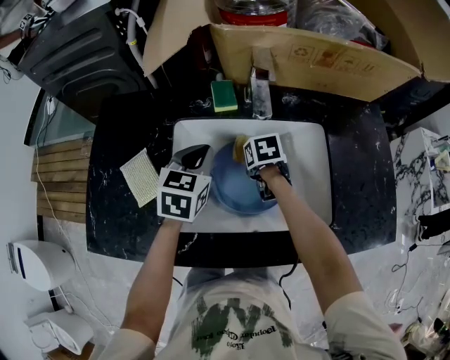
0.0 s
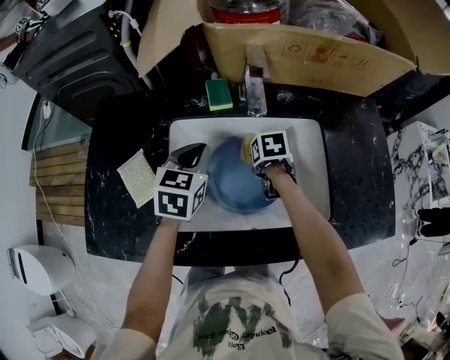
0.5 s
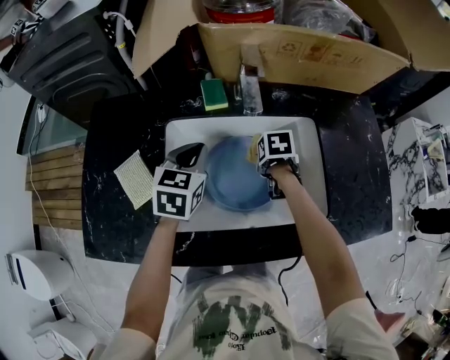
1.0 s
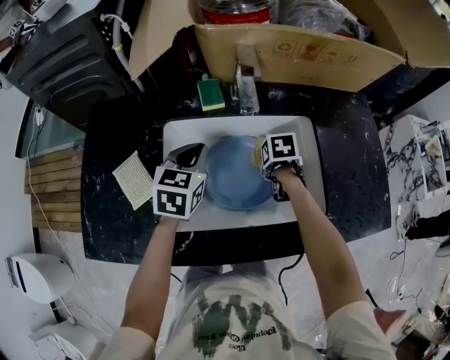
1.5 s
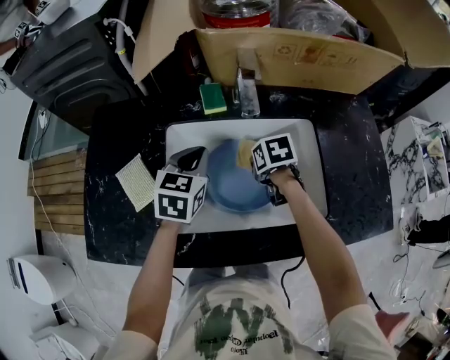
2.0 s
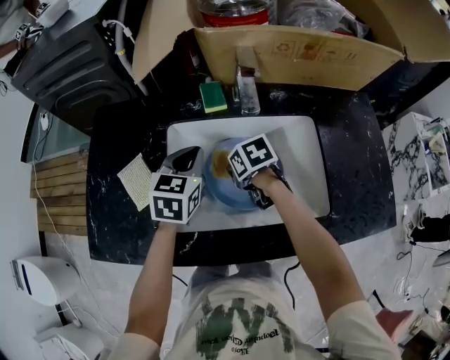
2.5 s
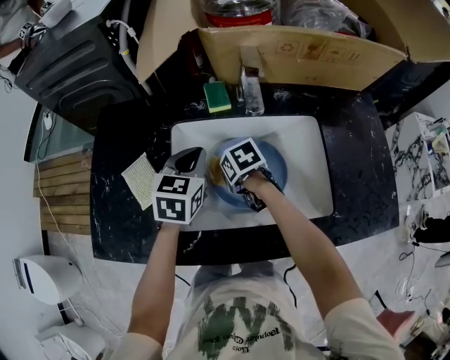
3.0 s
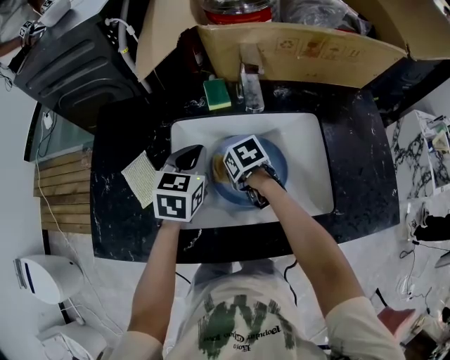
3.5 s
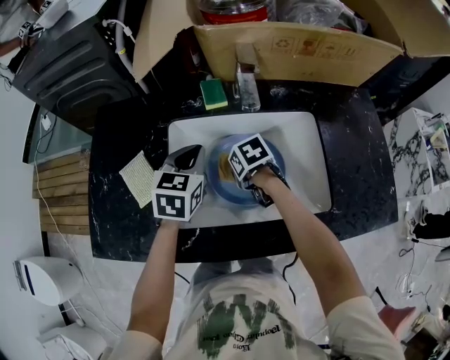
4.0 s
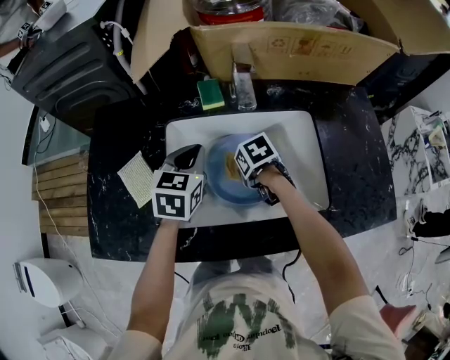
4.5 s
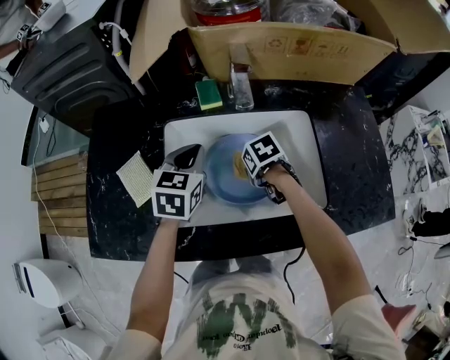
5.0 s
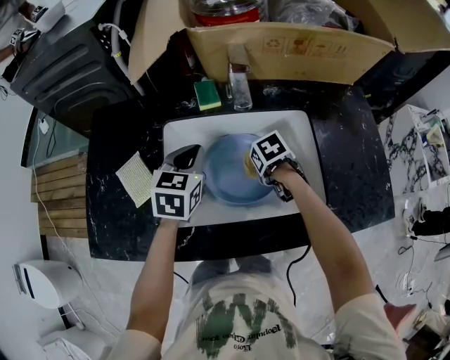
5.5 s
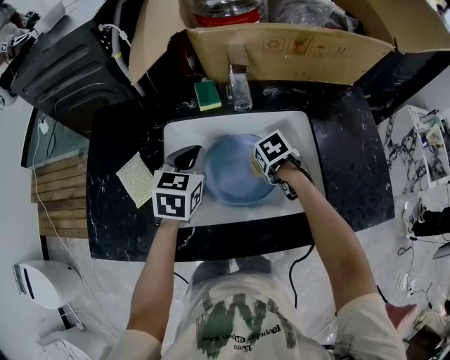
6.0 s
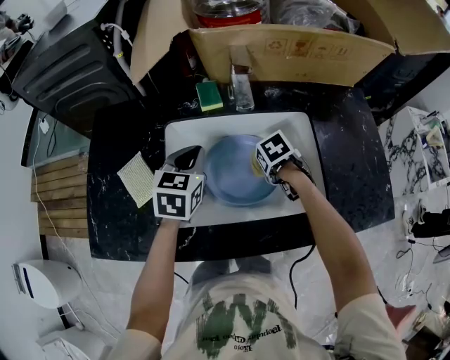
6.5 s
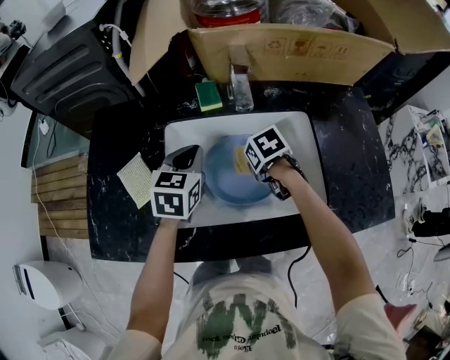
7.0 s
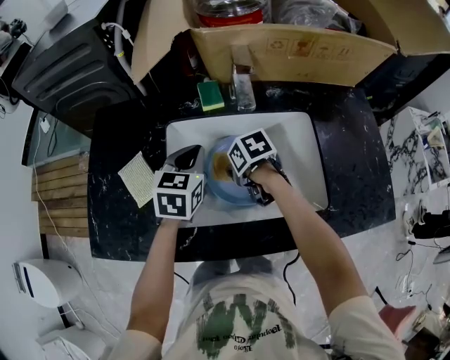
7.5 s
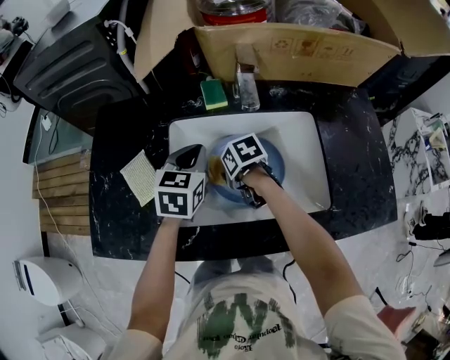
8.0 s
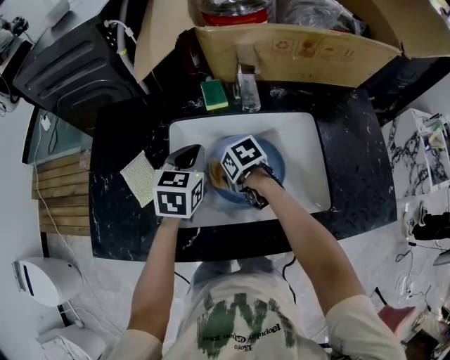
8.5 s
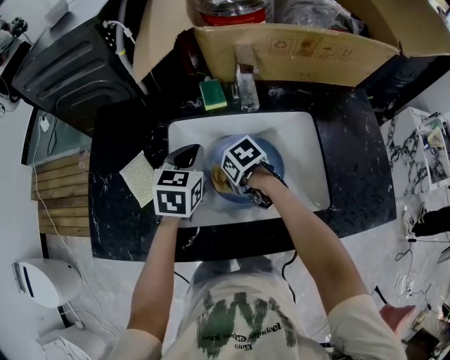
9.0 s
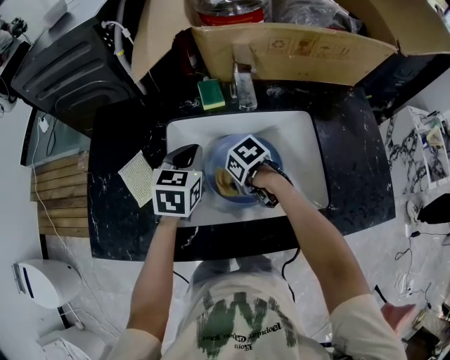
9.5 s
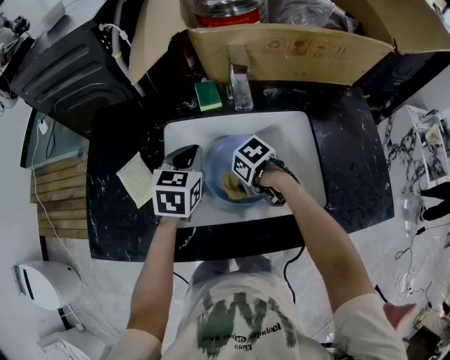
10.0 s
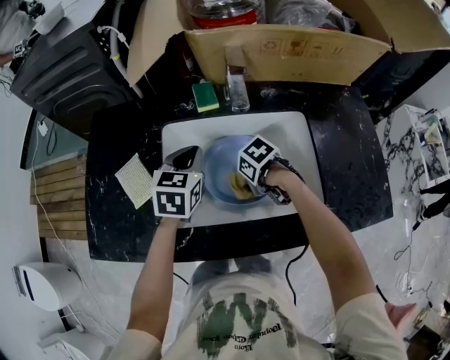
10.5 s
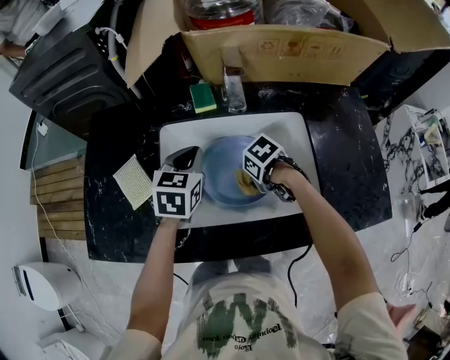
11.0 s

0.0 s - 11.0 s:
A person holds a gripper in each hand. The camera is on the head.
2.0 s - 3.5 s: The right gripper goes about 10 cm to the left.
3.5 s - 5.5 s: The right gripper moves some 10 cm.
5.5 s - 7.5 s: The right gripper shifts by roughly 10 cm.
7.5 s - 9.0 s: There are only small adjustments of the grippers.
9.0 s - 11.0 s: The right gripper ends up roughly 10 cm from where it was.

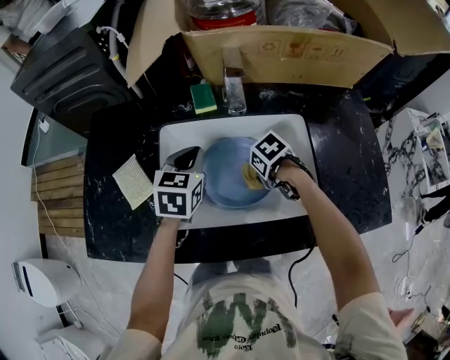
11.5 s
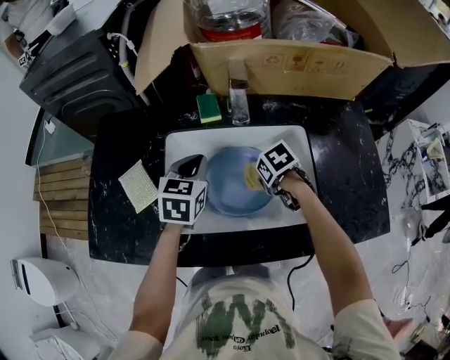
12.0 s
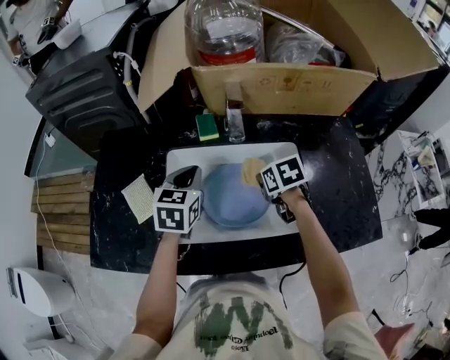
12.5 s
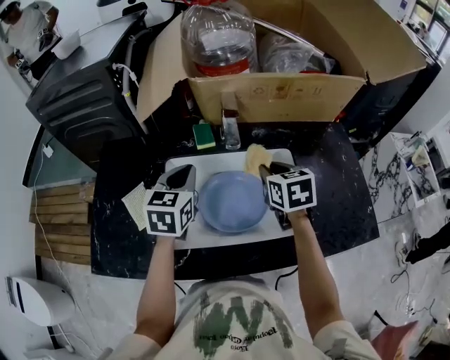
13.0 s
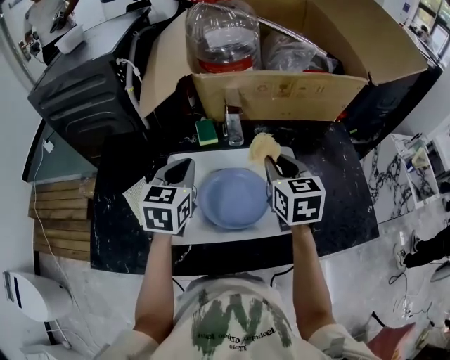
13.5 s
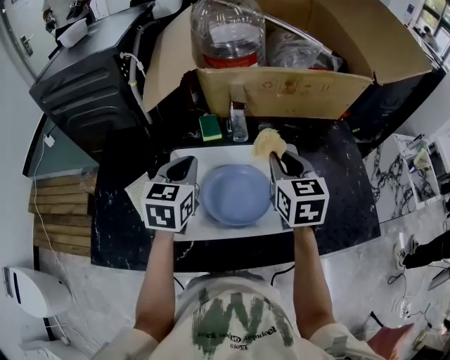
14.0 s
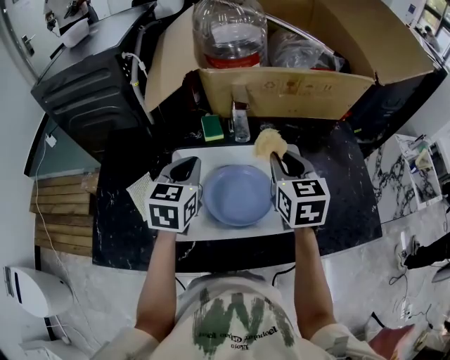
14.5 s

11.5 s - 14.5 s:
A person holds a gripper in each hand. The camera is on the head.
11.5 s - 13.0 s: The right gripper travels upward by approximately 20 cm, and points its fingers about 40 degrees further upward. The left gripper heads upward, covering roughly 10 cm.
13.0 s - 14.5 s: The right gripper travels upward by about 5 cm.

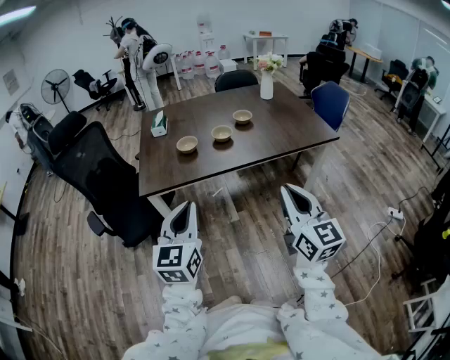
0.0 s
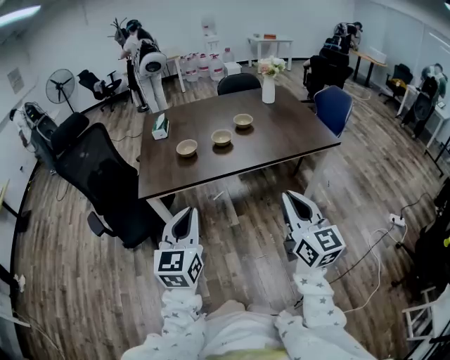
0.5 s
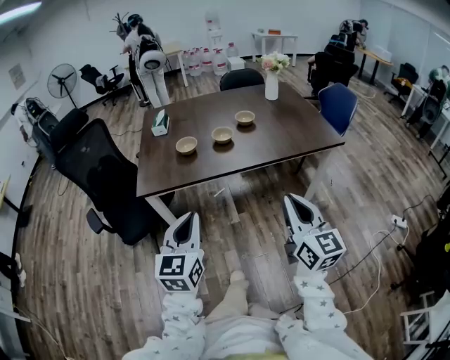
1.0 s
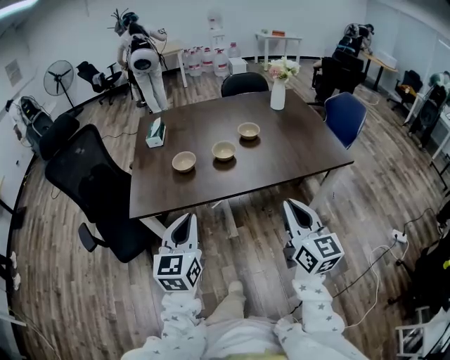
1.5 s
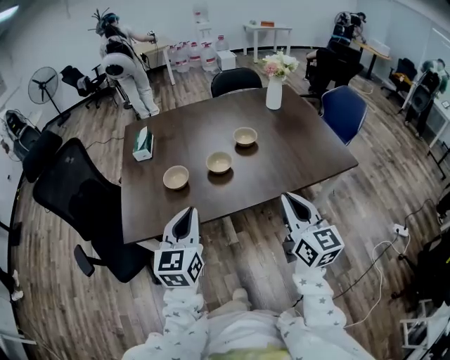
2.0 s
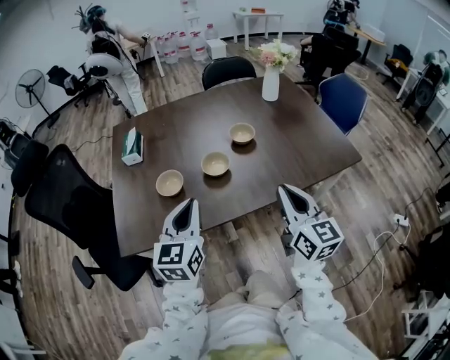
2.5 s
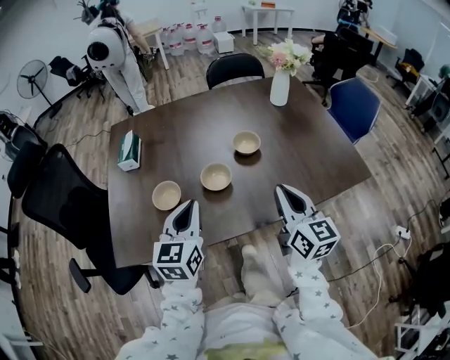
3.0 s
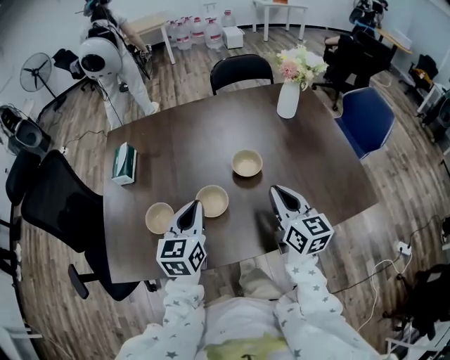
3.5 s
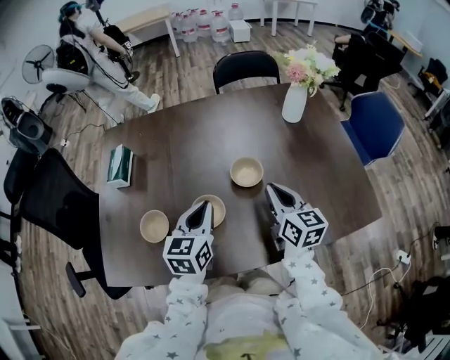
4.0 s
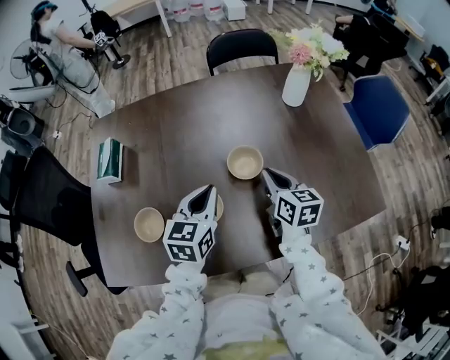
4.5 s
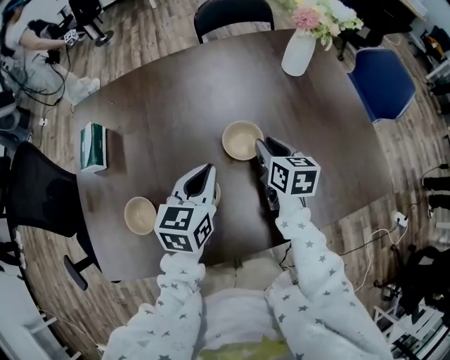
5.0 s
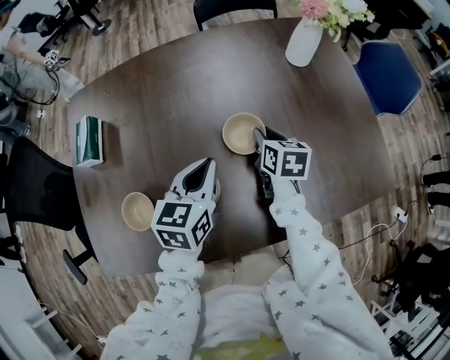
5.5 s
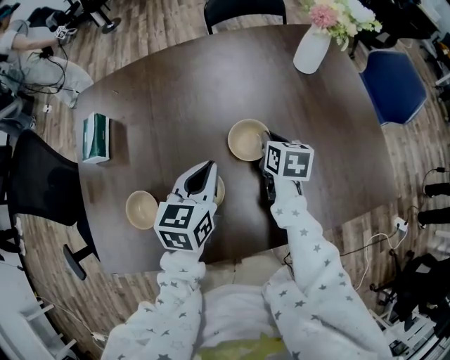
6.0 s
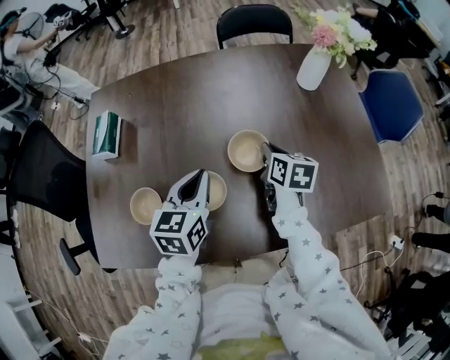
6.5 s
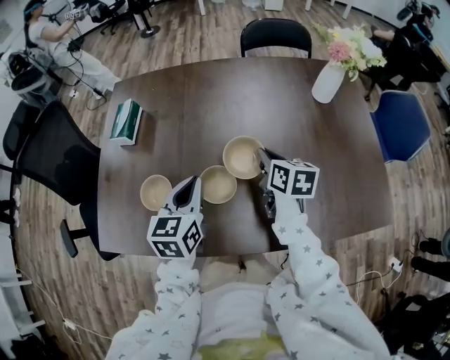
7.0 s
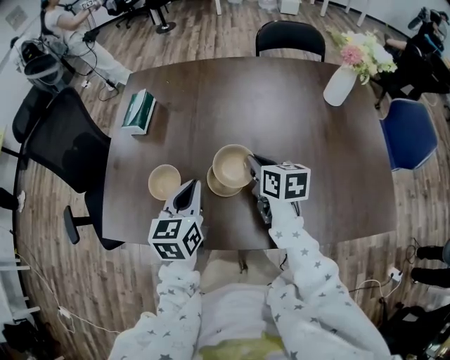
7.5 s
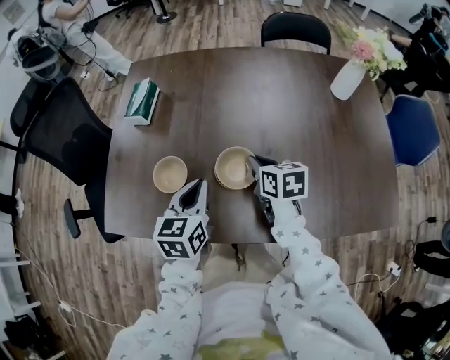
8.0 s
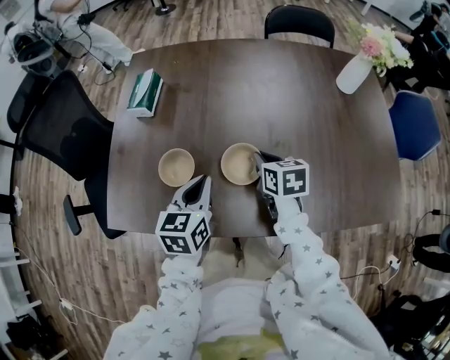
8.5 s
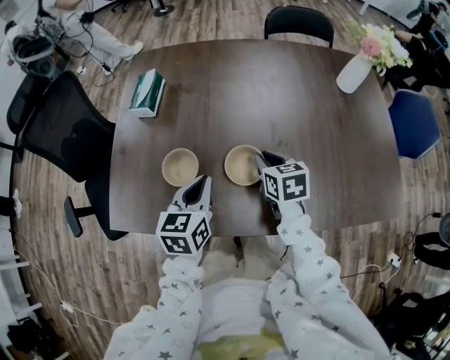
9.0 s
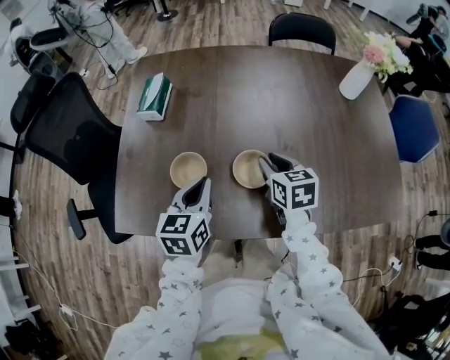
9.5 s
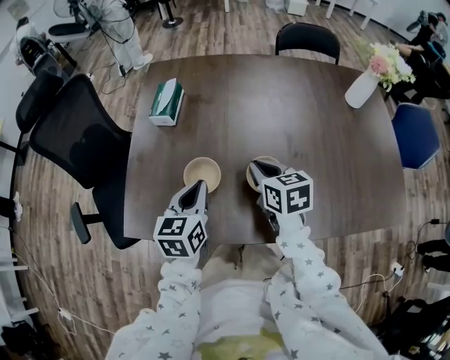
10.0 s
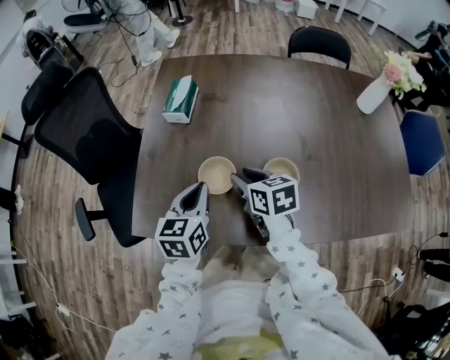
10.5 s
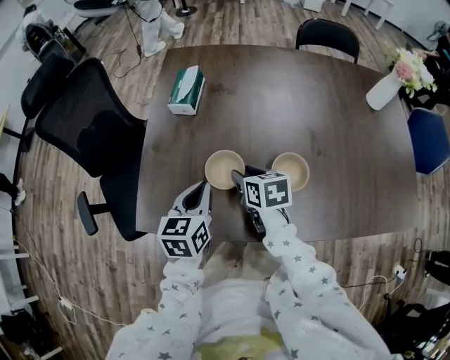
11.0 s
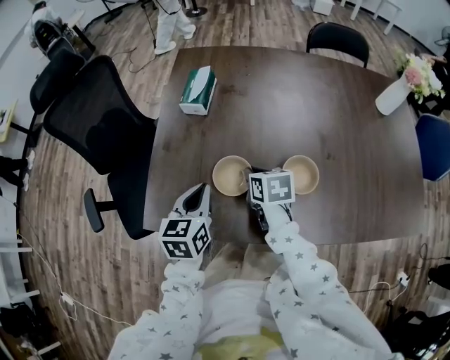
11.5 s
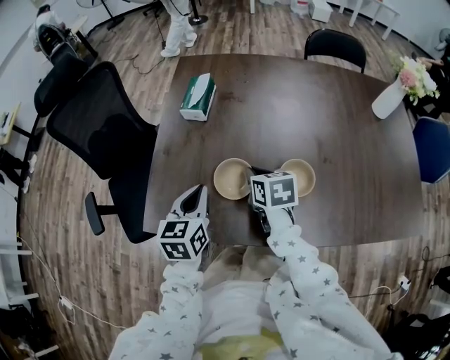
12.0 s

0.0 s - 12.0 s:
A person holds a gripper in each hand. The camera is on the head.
0.0 s - 2.0 s: The grippers both shift forward by some 25 cm.
2.0 s - 4.0 s: The two grippers go some 30 cm forward.
4.0 s - 6.0 s: The left gripper moves forward, some 5 cm, while the right gripper heads downward and forward, covering approximately 15 cm, and swivels roughly 30 degrees.
6.0 s - 8.0 s: The right gripper moves roughly 20 cm, and swivels approximately 30 degrees, while the left gripper ends up approximately 15 cm from where it was.
8.0 s - 10.0 s: Both grippers move to the left, roughly 10 cm.
10.0 s - 12.0 s: The left gripper heads to the left, covering roughly 10 cm. Meanwhile the right gripper moves to the left and downward, about 10 cm, and opens, then closes once more.

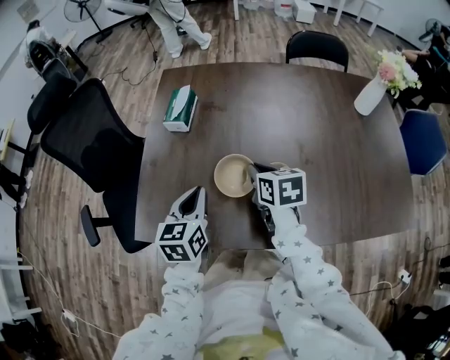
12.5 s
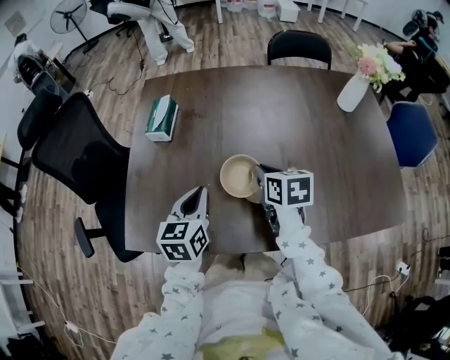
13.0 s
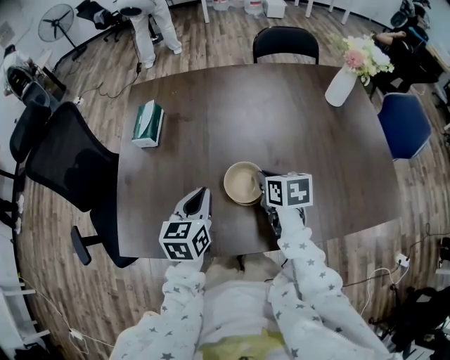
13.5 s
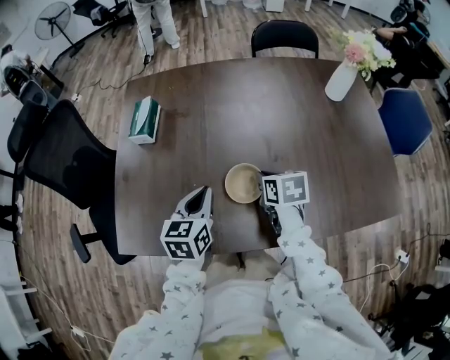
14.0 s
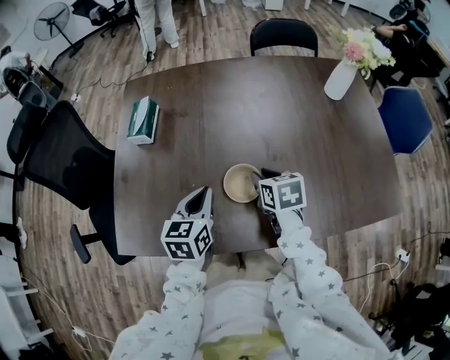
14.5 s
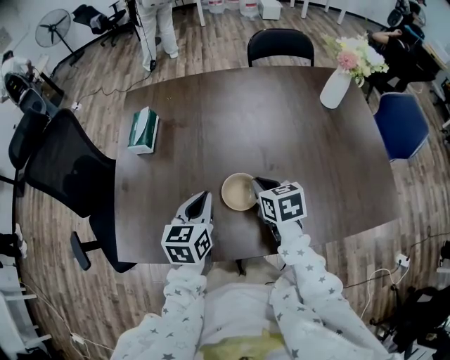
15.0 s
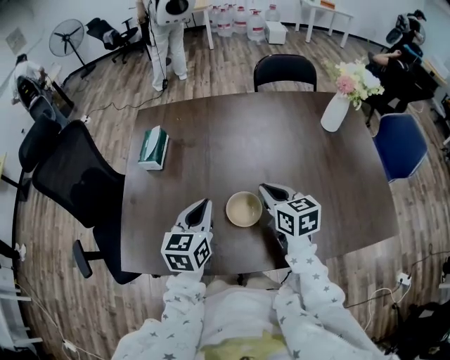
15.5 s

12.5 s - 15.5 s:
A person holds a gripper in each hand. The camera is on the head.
12.5 s - 14.0 s: The two grippers go roughly 15 cm to the right.
14.0 s - 15.5 s: The right gripper travels upward by approximately 10 cm, and rotates about 30 degrees.
